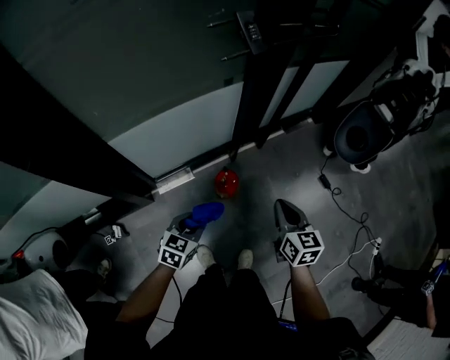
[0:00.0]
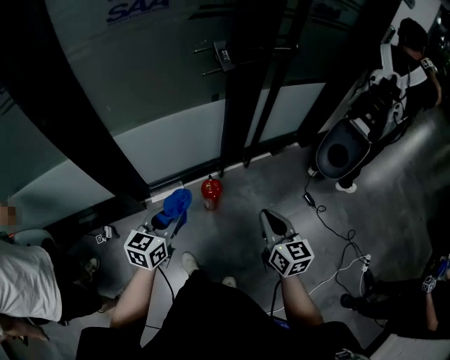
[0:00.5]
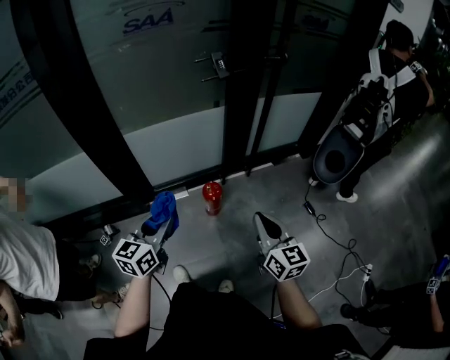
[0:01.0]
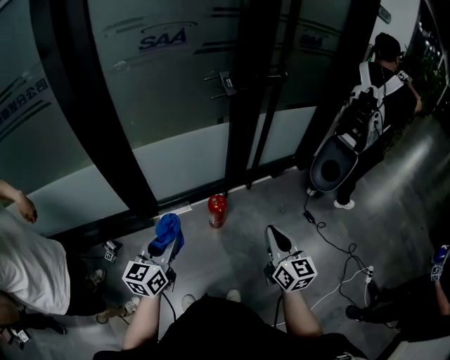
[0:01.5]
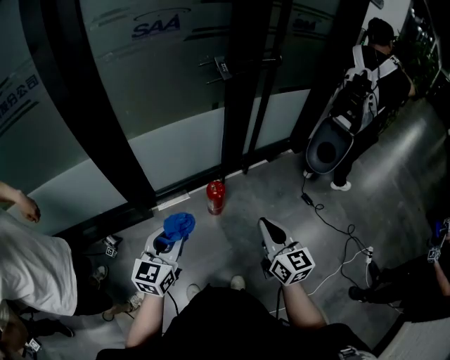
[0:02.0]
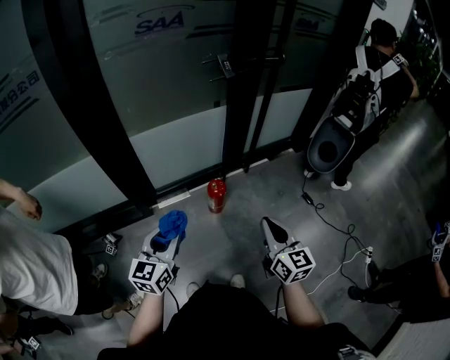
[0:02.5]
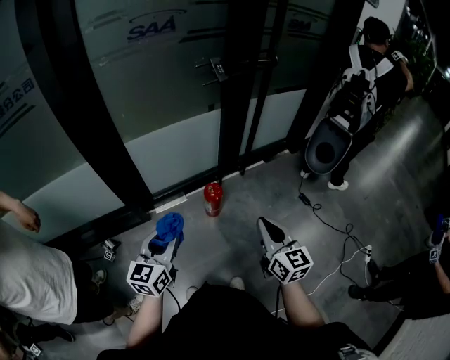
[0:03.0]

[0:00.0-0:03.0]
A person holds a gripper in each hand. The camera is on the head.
0:00.0 to 0:01.5: The left gripper shifts roughly 35 cm upward and backward, and angles its fingers upward, by approximately 30 degrees, while the right gripper moves backward and upward, roughly 30 cm, and rotates some 20 degrees.
0:01.5 to 0:03.0: The grippers stay close to where they were, moving slightly.

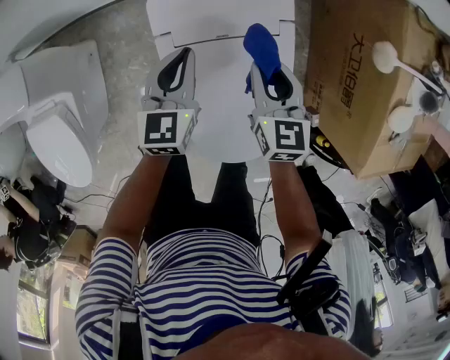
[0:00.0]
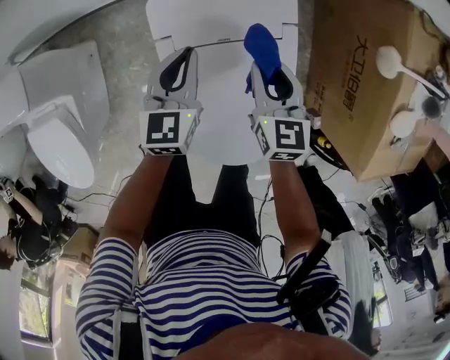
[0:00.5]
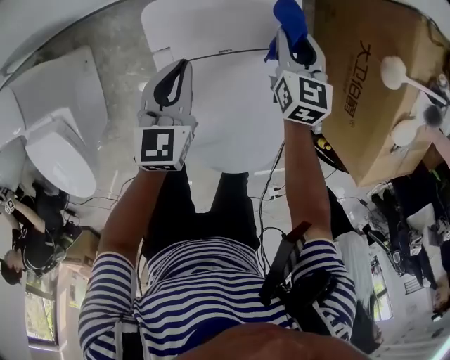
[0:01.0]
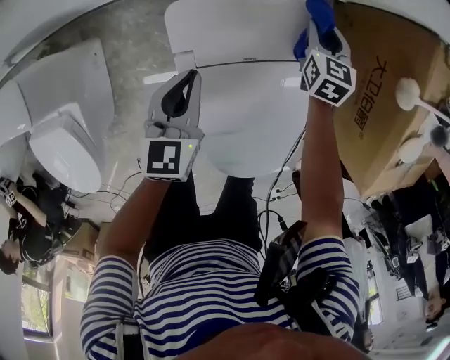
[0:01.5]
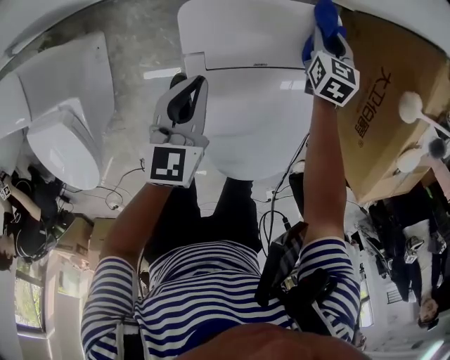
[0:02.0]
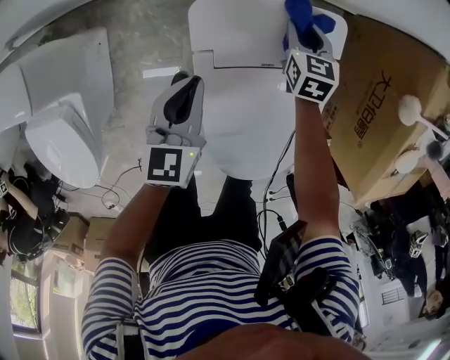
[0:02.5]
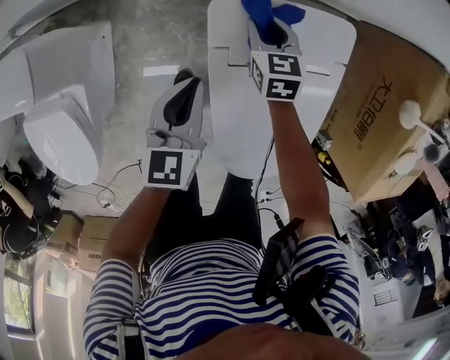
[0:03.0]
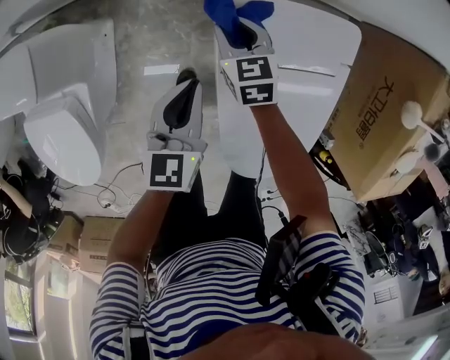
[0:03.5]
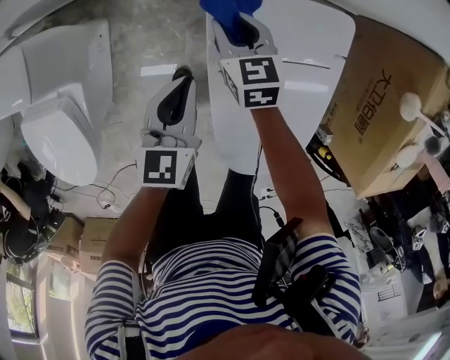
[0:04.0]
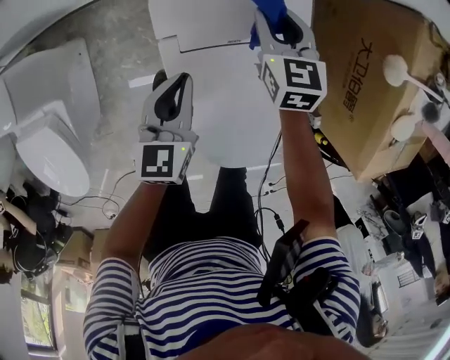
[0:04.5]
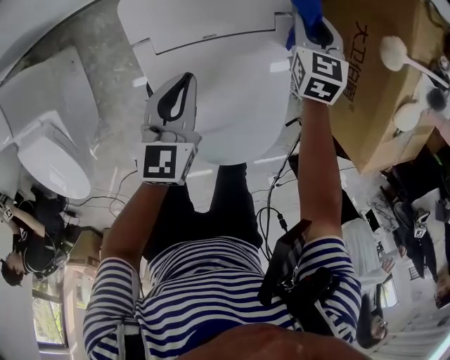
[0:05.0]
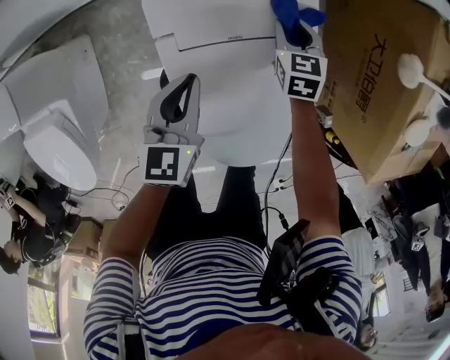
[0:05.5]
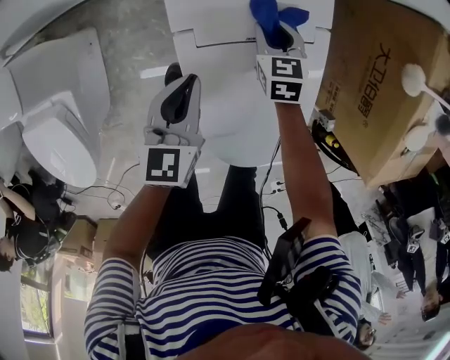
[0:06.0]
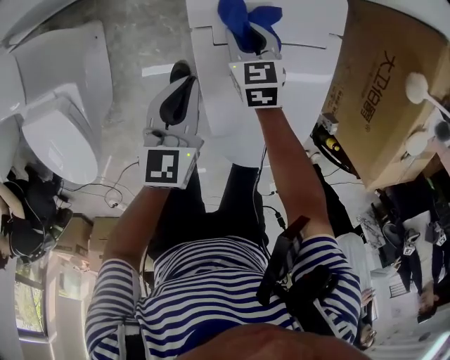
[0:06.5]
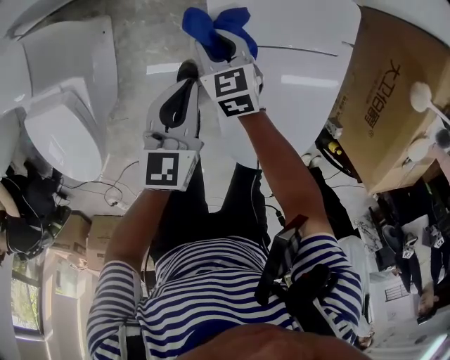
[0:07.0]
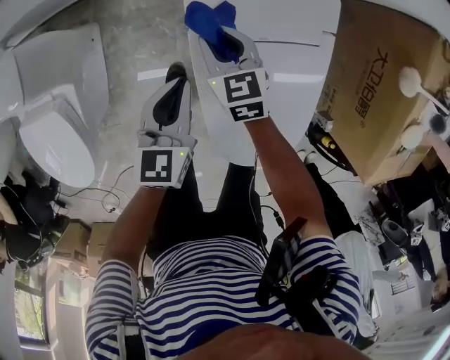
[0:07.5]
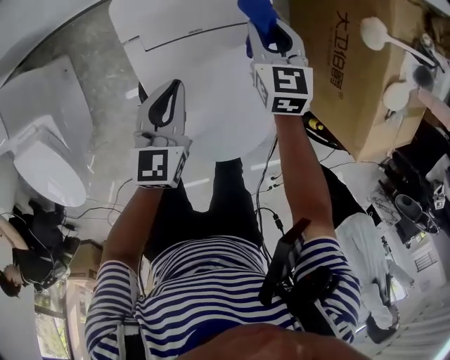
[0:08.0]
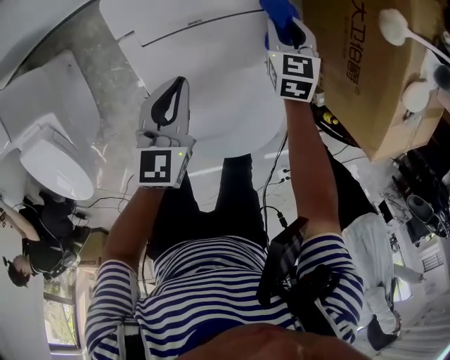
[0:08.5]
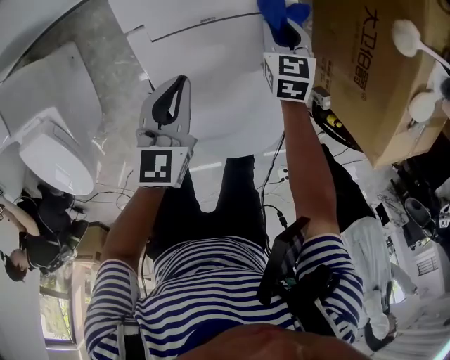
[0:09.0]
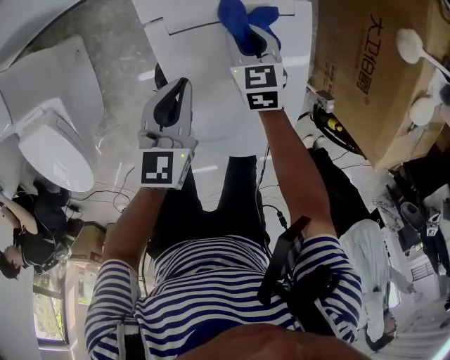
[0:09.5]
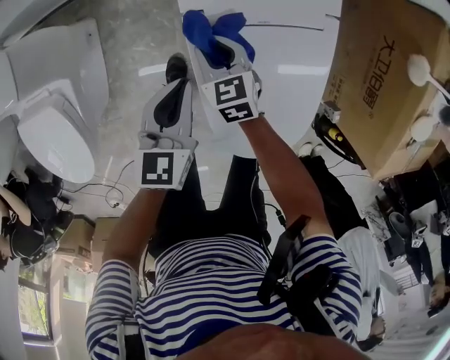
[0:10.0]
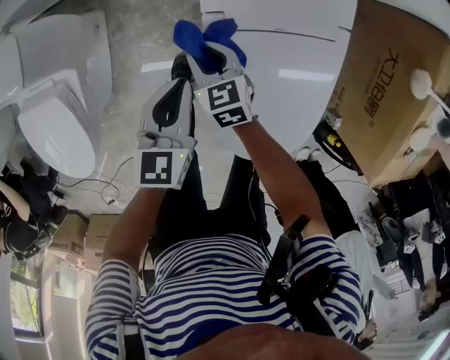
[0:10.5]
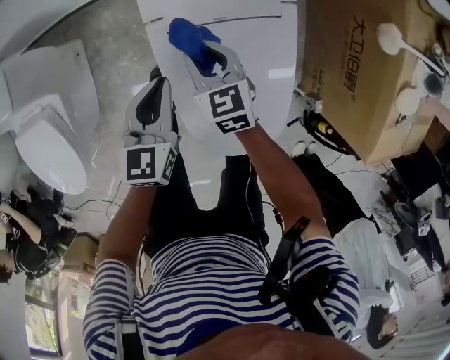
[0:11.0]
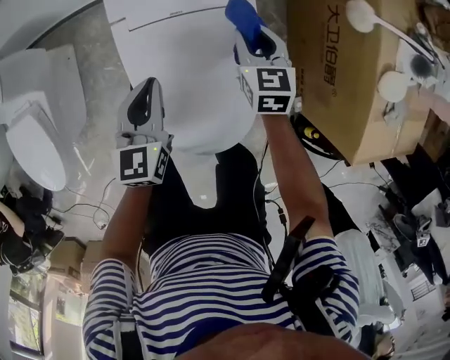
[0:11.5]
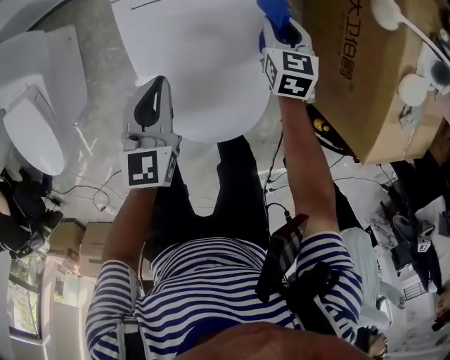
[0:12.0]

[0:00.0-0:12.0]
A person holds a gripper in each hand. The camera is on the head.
0:00.0 to 0:02.0: The left gripper heads to the left and downward, covering about 10 cm. The right gripper shifts some 25 cm forward and downward.
0:02.0 to 0:04.0: The left gripper moves to the left, some 10 cm. The right gripper goes about 30 cm to the left, and swivels some 30 degrees.
0:04.0 to 0:06.0: The left gripper moves to the right, roughly 10 cm. The right gripper travels to the right by about 20 cm.
0:06.0 to 0:08.0: The right gripper is displaced upward by about 10 cm, and moves some 20 cm to the left and comes back, while the left gripper moves to the right, roughly 10 cm.
0:08.0 to 0:10.0: The right gripper is displaced to the left, backward and downward by roughly 30 cm, and turns by about 20 degrees; the left gripper travels to the left by approximately 10 cm.
0:10.0 to 0:12.0: The left gripper travels to the right and backward by some 20 cm. Meanwhile the right gripper travels to the right by roughly 35 cm, and changes its angle by some 20 degrees.

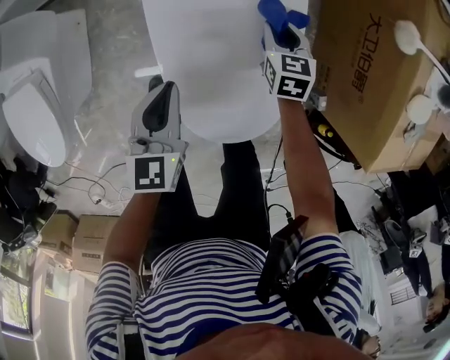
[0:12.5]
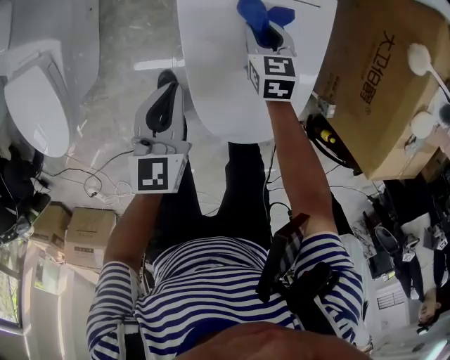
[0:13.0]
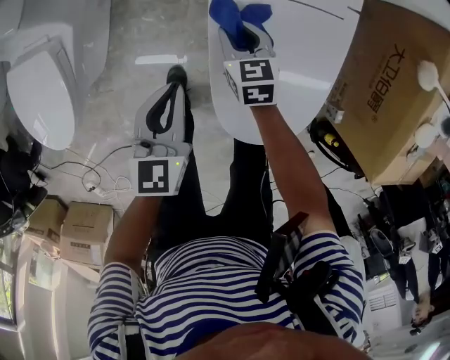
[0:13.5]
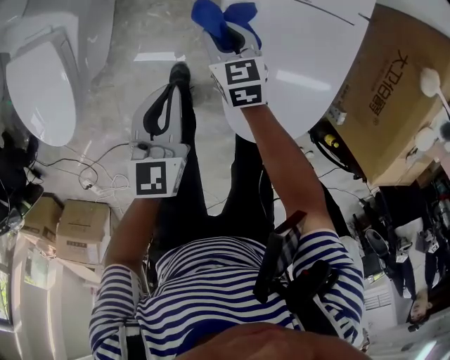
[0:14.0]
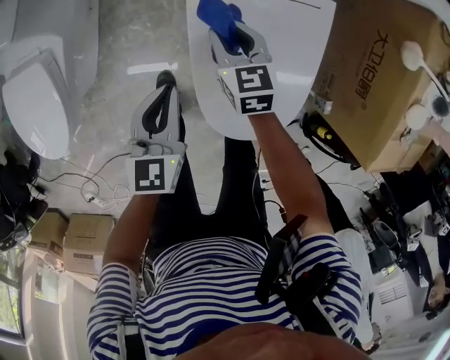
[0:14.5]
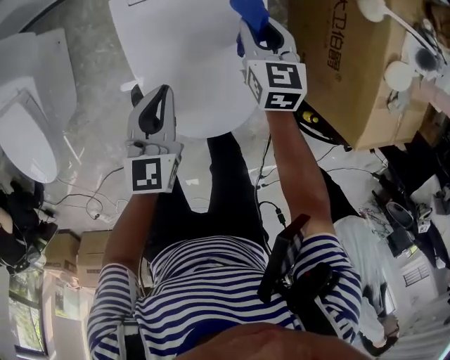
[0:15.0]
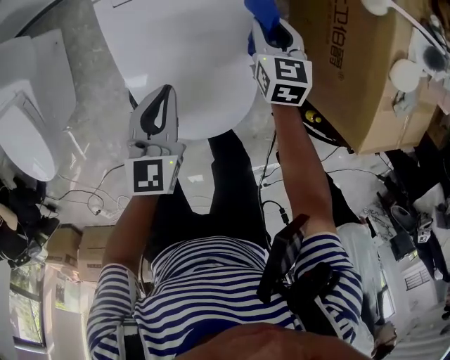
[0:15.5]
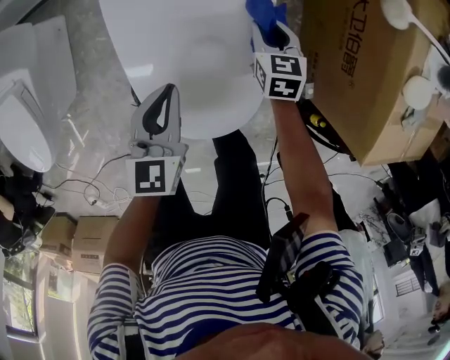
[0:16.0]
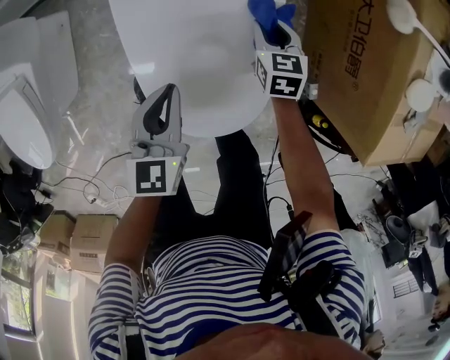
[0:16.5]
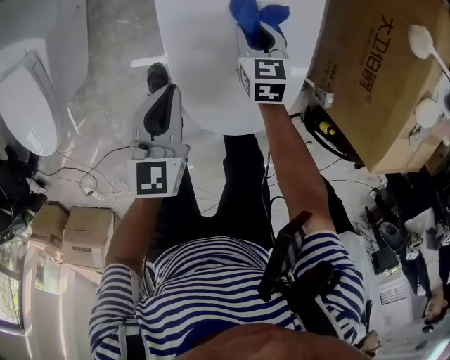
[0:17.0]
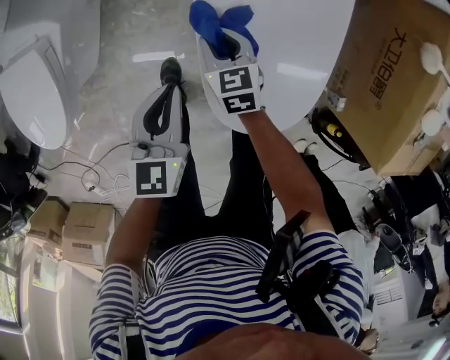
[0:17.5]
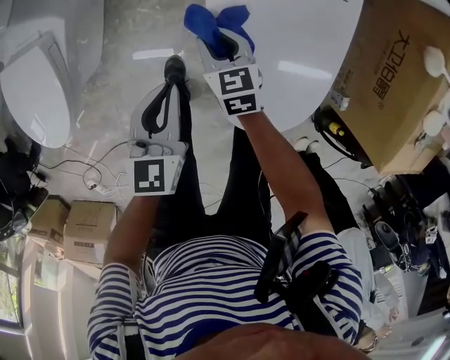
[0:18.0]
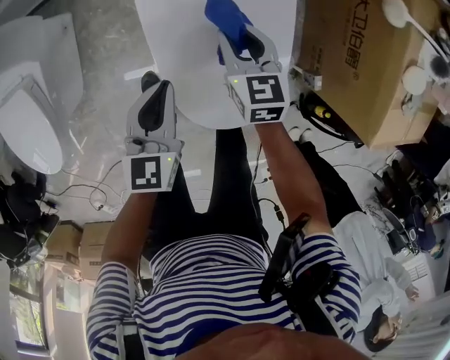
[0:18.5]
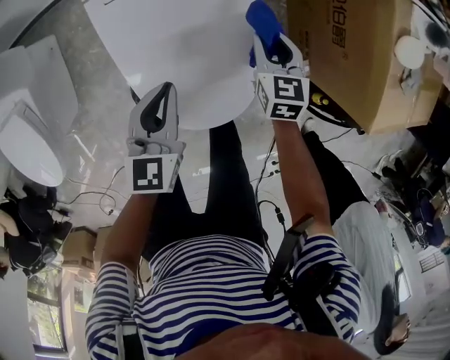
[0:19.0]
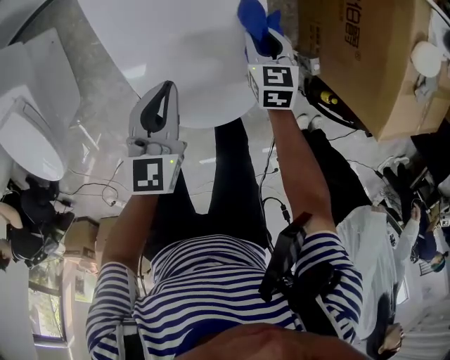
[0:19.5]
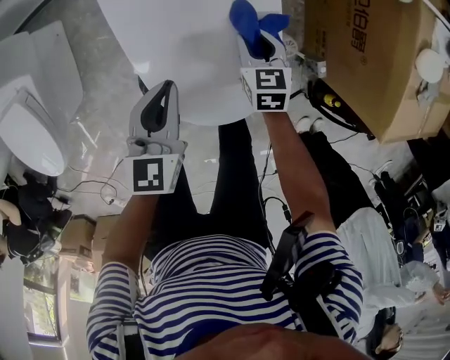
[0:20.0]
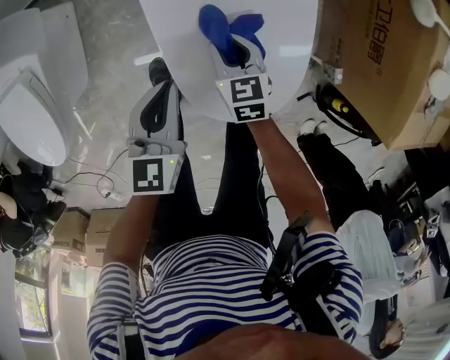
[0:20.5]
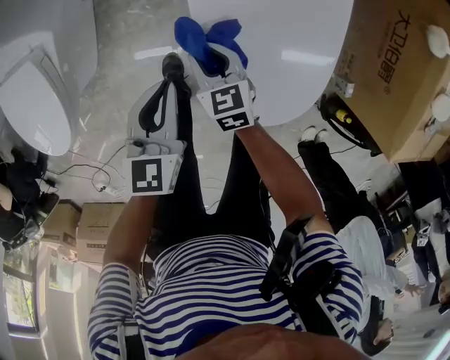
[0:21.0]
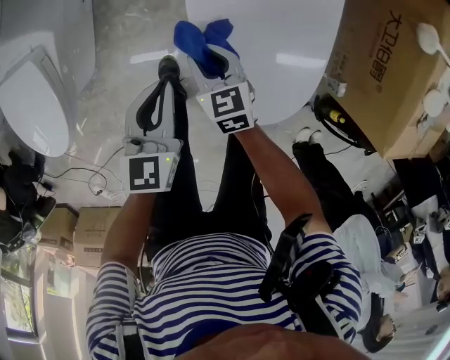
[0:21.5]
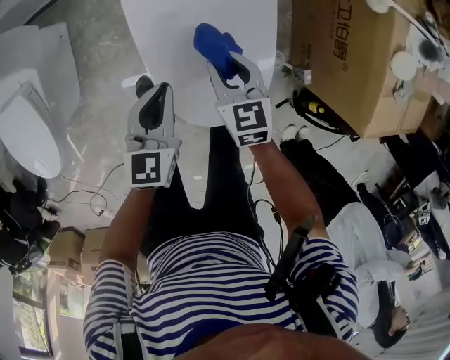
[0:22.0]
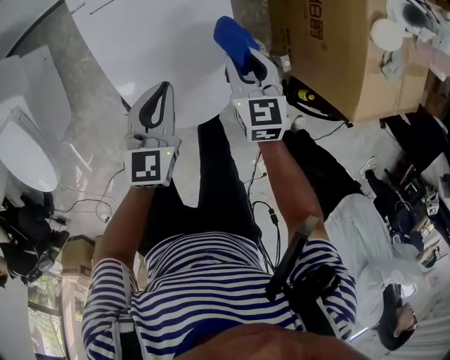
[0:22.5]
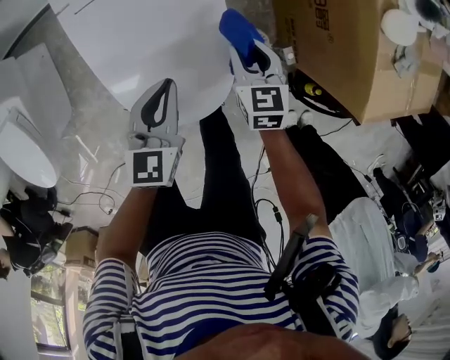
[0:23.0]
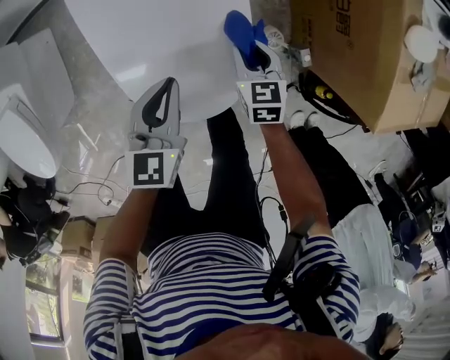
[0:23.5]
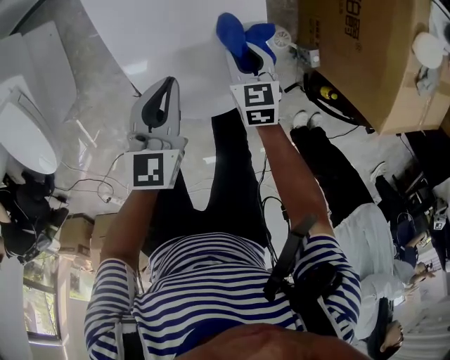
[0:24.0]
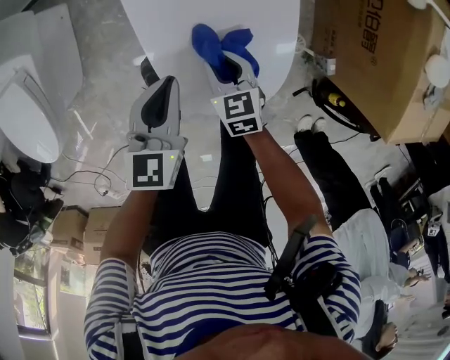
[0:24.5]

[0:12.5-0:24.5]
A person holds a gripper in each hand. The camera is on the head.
0:12.5 to 0:14.5: The left gripper travels to the left by approximately 10 cm, while the right gripper shifts some 25 cm to the left.
0:14.5 to 0:16.5: The right gripper shifts roughly 30 cm to the right; the left gripper travels to the right by some 20 cm.
0:16.5 to 0:18.5: The right gripper goes some 20 cm to the left and upward, while the left gripper travels to the left by roughly 10 cm.
0:18.5 to 0:20.5: The left gripper travels to the right and back again, approximately 10 cm each way; the right gripper travels downward and backward by approximately 15 cm, and moves about 20 cm to the right and comes back.
0:20.5 to 0:22.5: The left gripper shifts roughly 15 cm to the right; the right gripper heads to the right and upward, covering about 25 cm.
0:22.5 to 0:24.5: The left gripper travels to the left by some 10 cm; the right gripper moves to the left, downward and backward, some 25 cm.
